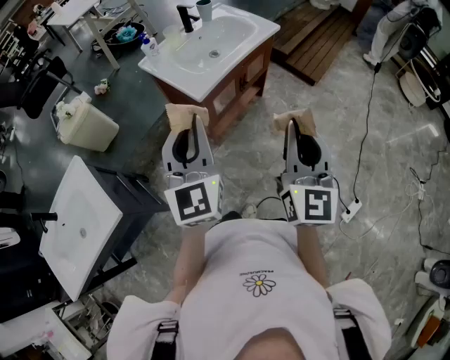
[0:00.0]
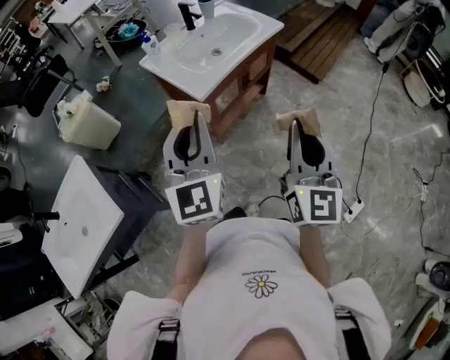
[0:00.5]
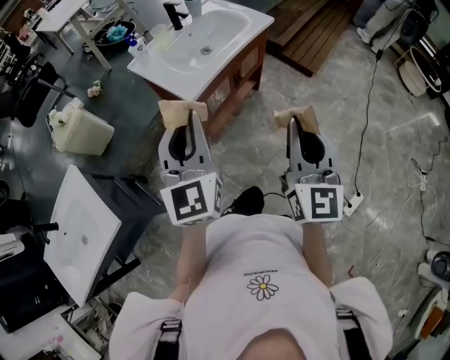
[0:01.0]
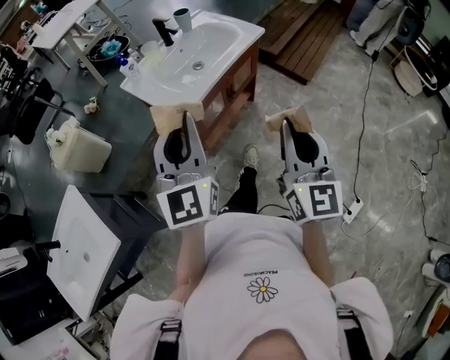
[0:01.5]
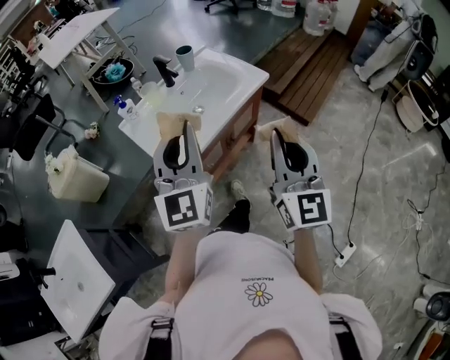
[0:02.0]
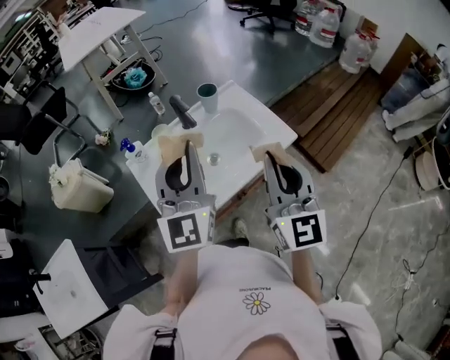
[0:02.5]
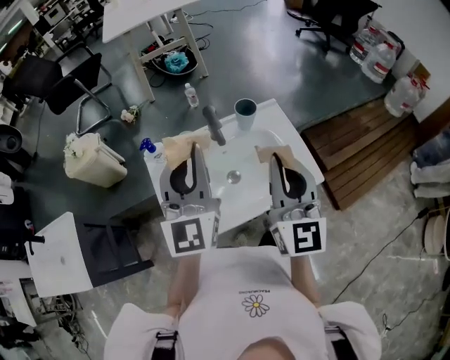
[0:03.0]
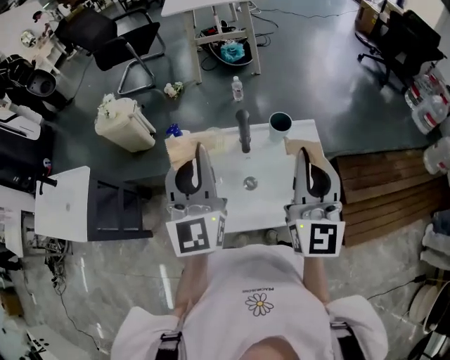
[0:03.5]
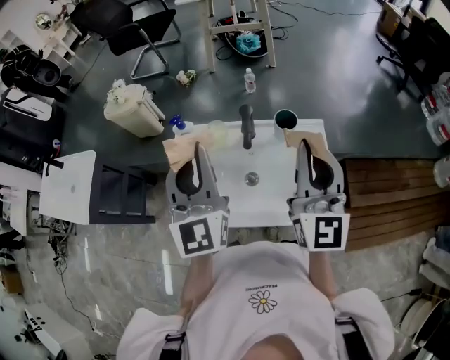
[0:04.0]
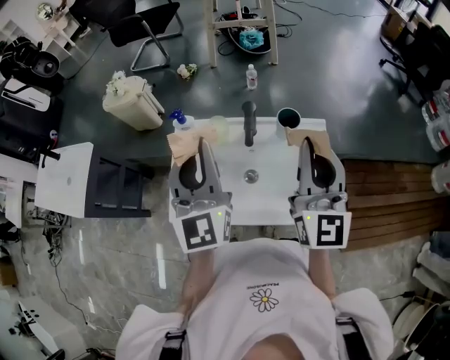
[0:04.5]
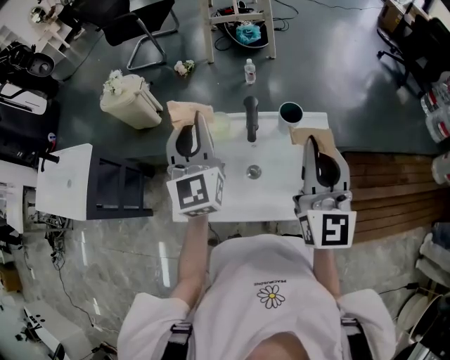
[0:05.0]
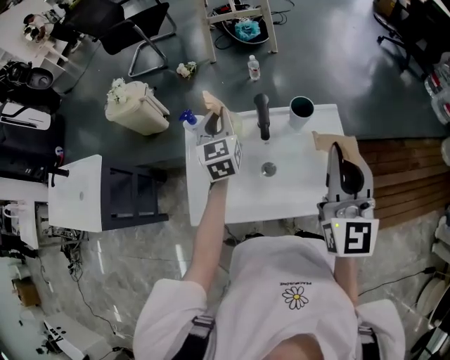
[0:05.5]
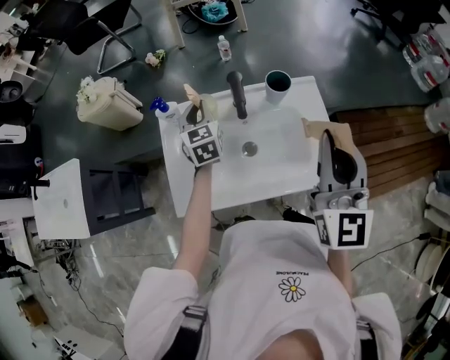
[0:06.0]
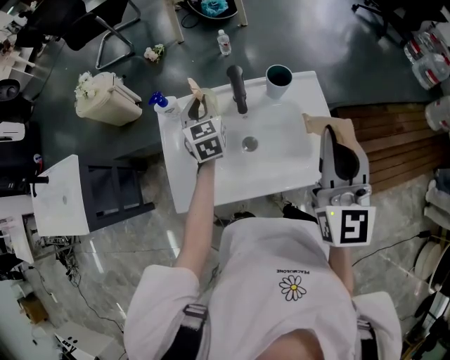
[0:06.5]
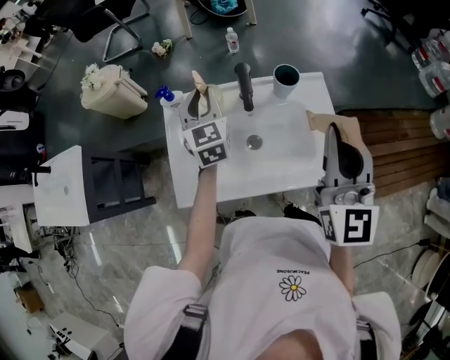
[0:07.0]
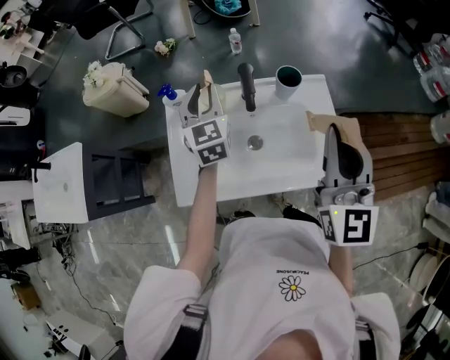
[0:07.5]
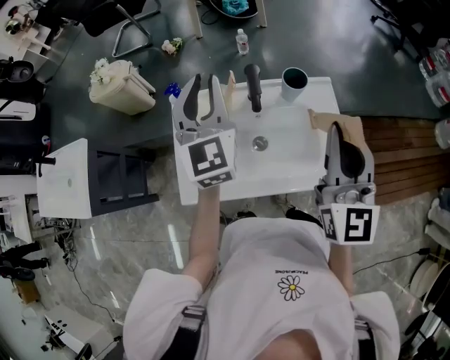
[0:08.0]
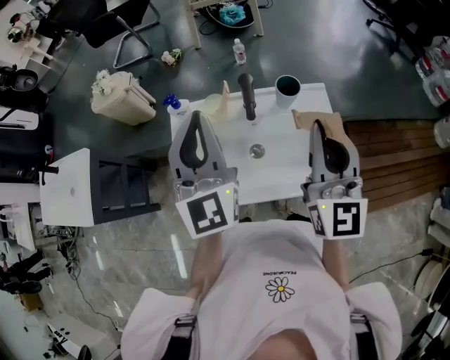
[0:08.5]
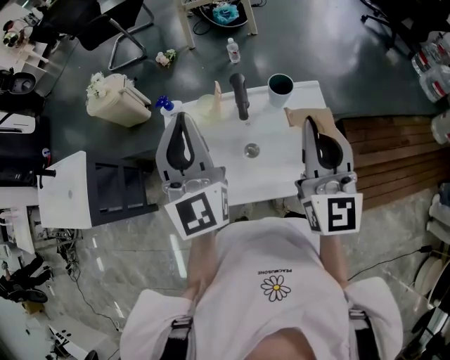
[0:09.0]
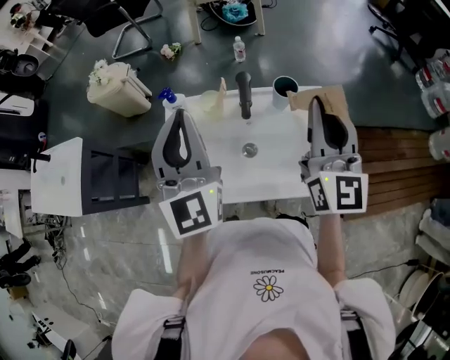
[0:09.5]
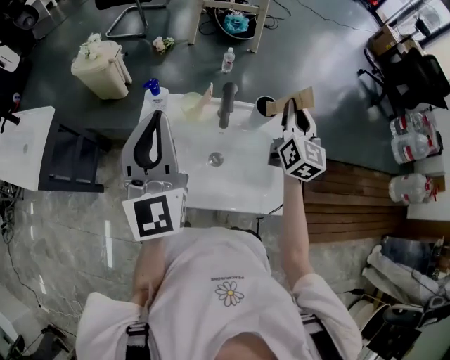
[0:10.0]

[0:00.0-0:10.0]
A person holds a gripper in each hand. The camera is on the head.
0:00.0 to 0:02.0: The grippers both shift forward by approximately 25 cm.
0:02.0 to 0:04.0: The right gripper ends up about 50 cm from where it was, and swivels some 40 degrees; the left gripper changes place by some 30 cm, and changes its angle by about 50 degrees.
0:04.0 to 0:06.0: The left gripper shifts roughly 30 cm downward and forward, and points its fingers about 30 degrees further downward; the right gripper ends up roughly 5 cm from where it was.
0:06.0 to 0:08.0: The left gripper is displaced upward by some 20 cm, and rotates some 20 degrees.
0:08.0 to 0:10.0: The left gripper moves backward, roughly 10 cm. Meanwhile the right gripper shifts approximately 20 cm forward and downward.

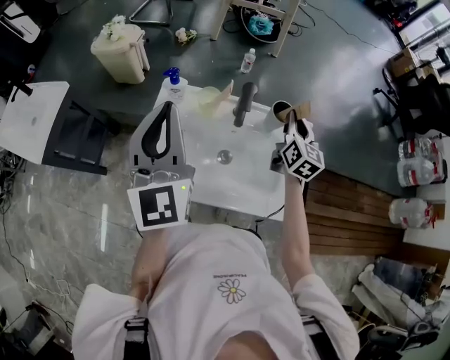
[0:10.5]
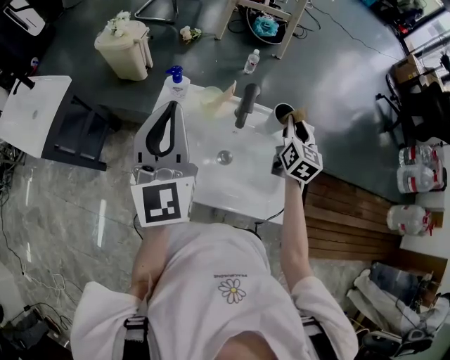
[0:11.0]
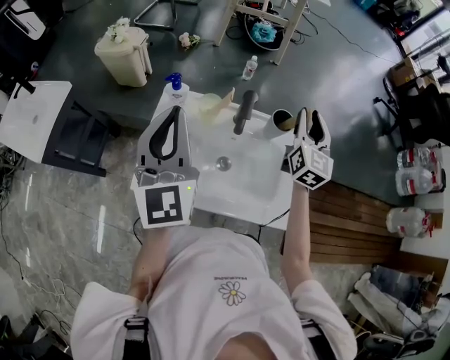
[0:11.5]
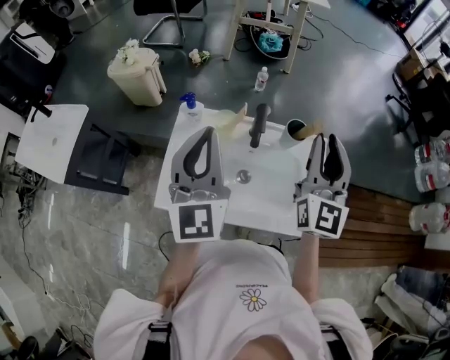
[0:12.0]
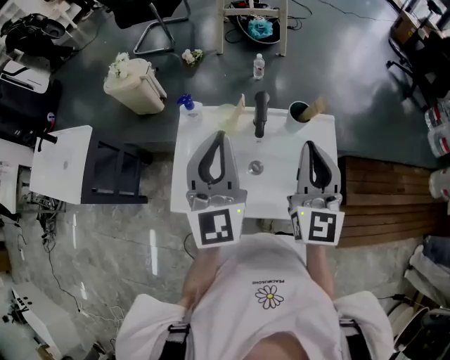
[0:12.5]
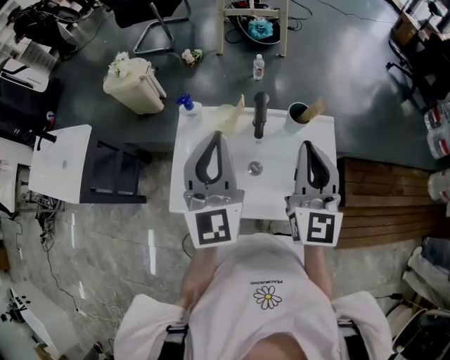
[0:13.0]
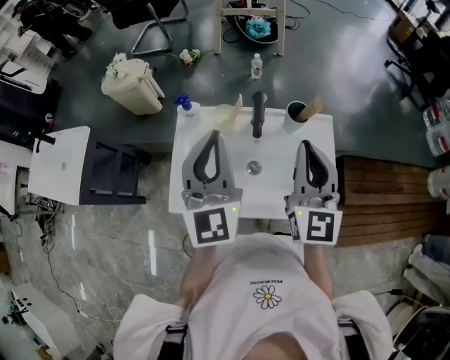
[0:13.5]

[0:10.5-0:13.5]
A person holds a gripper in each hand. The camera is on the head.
0:10.5 to 0:12.0: The right gripper shifts about 20 cm upward and backward, and rotates approximately 30 degrees.
0:12.0 to 0:13.5: The right gripper moves approximately 5 cm.

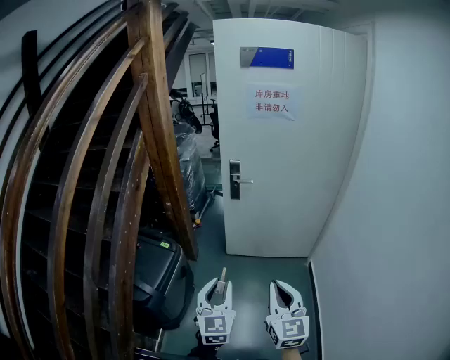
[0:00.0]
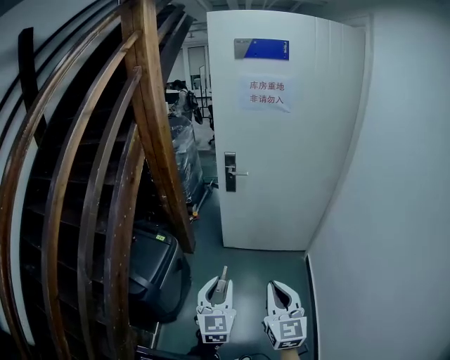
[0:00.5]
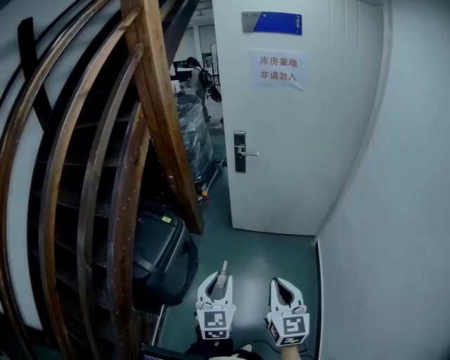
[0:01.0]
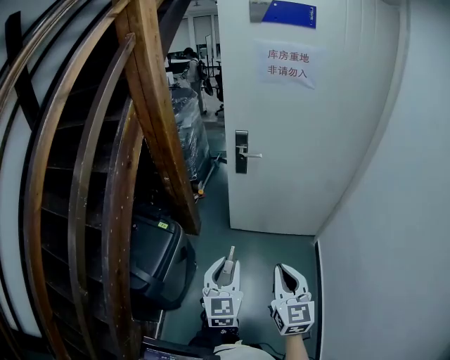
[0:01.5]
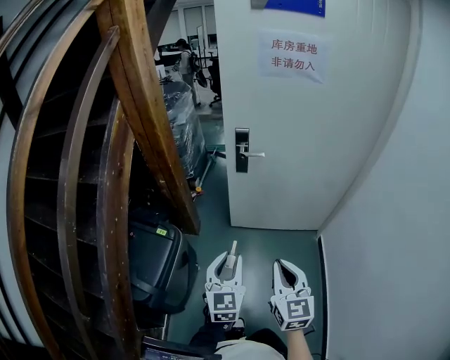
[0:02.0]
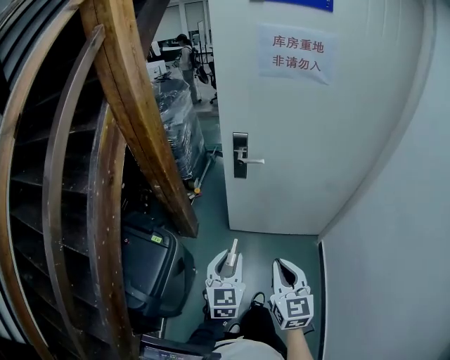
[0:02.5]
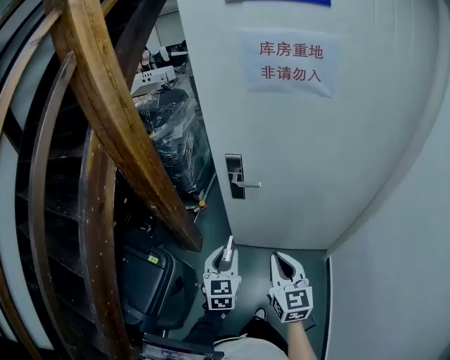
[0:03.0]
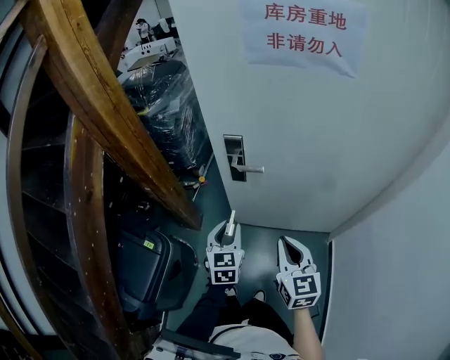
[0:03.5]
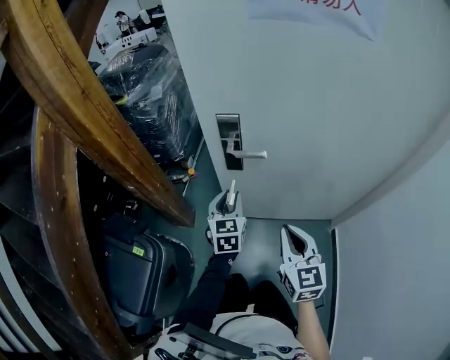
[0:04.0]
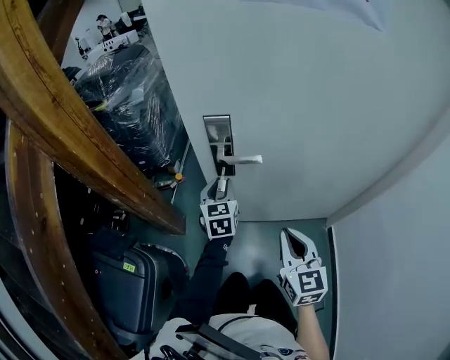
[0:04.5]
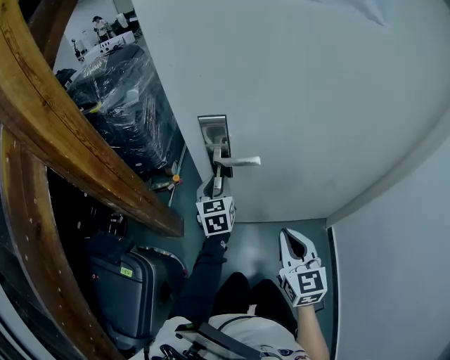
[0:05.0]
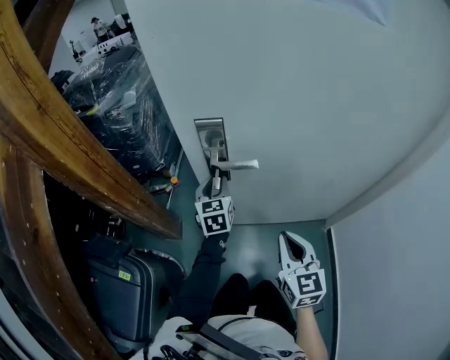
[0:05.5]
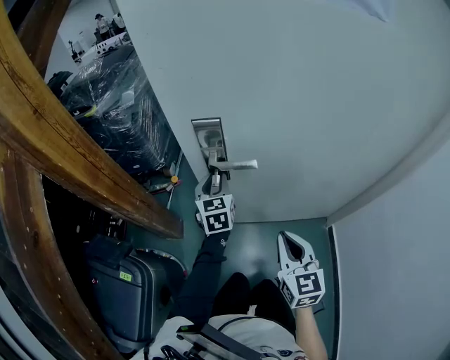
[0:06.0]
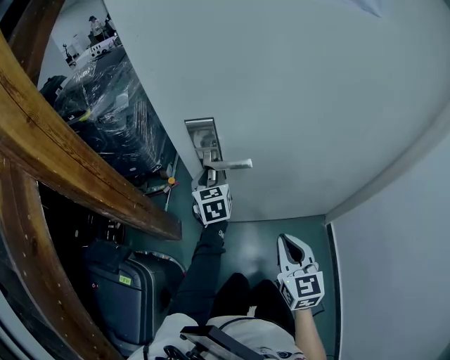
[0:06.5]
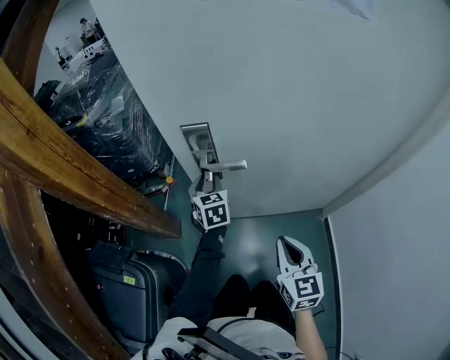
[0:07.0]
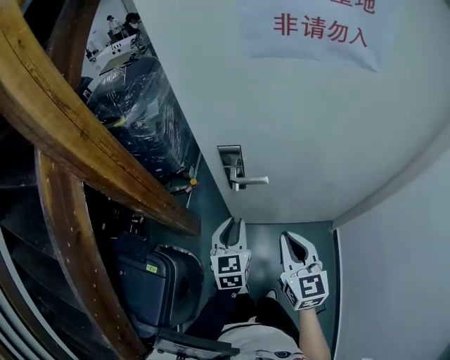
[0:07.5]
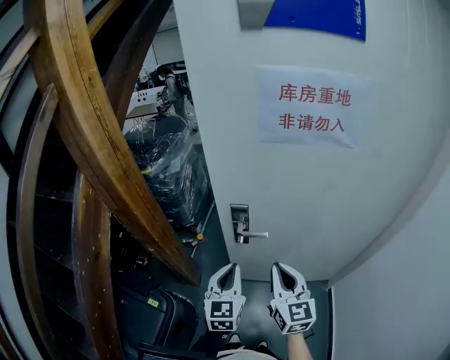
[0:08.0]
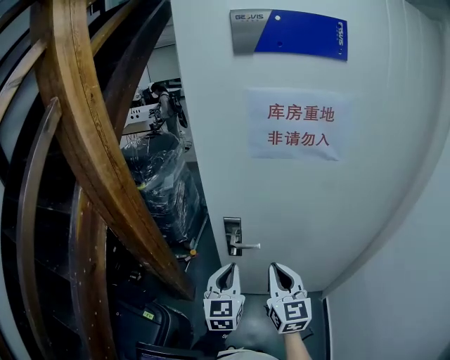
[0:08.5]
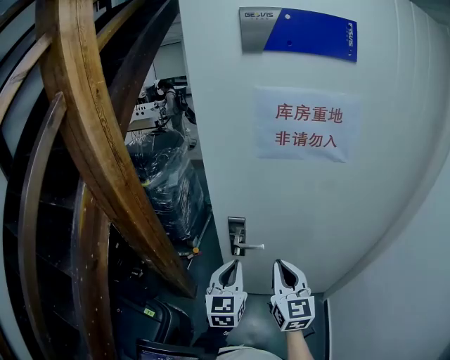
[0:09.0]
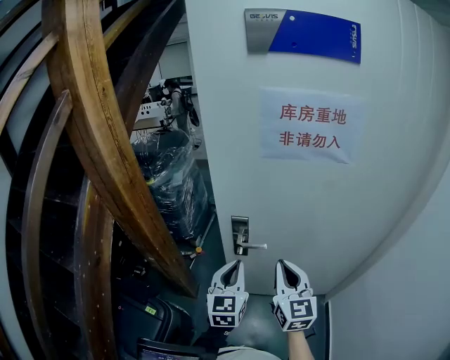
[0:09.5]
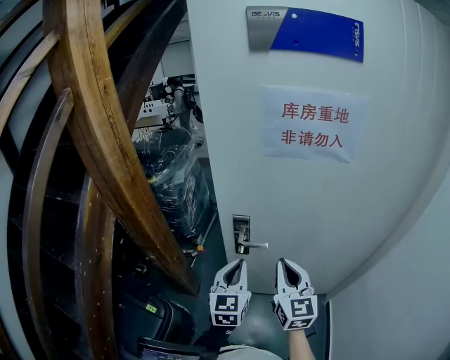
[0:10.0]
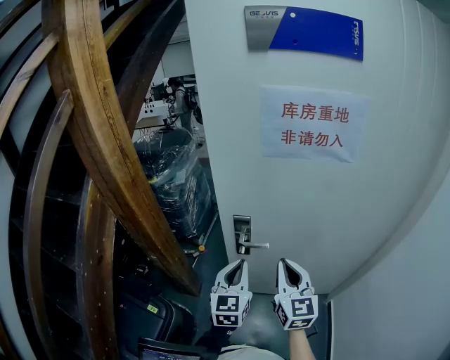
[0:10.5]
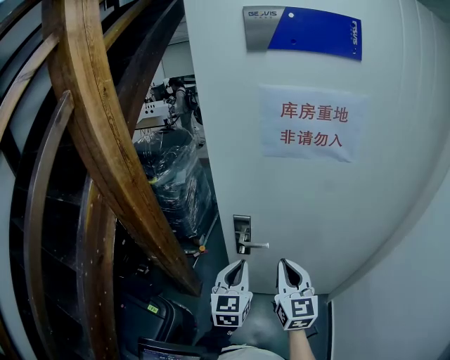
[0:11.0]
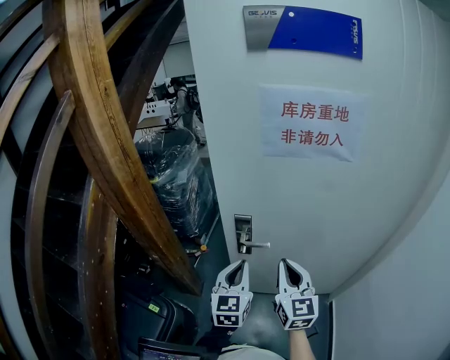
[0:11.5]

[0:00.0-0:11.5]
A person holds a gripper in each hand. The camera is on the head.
0:00.0 to 0:02.0: The grippers both shift forward by about 20 cm.
0:02.0 to 0:04.0: The right gripper goes some 35 cm forward and downward. Meanwhile the left gripper is displaced forward by approximately 40 cm.
0:04.0 to 0:06.0: The right gripper goes some 5 cm downward, while the left gripper travels forward by approximately 15 cm.
0:06.0 to 0:07.5: The left gripper shifts roughly 20 cm backward and upward, while the right gripper goes about 15 cm upward.
0:07.5 to 0:09.5: The grippers both shift upward by roughly 15 cm. The left gripper closes up.
0:09.5 to 0:11.5: Both grippers stay put.

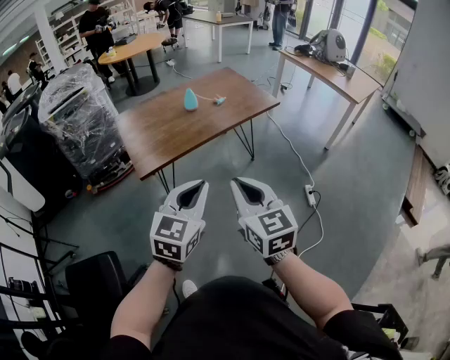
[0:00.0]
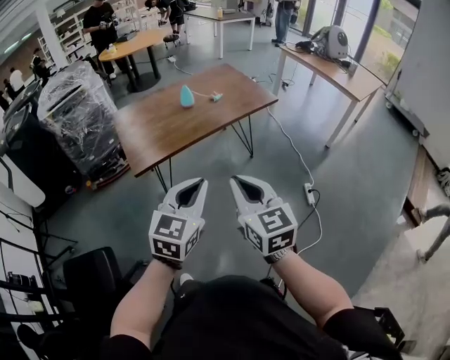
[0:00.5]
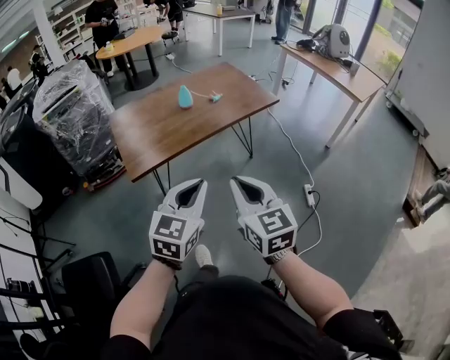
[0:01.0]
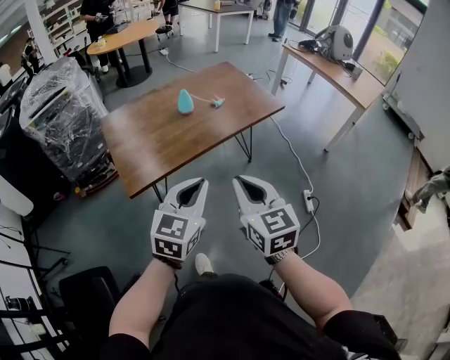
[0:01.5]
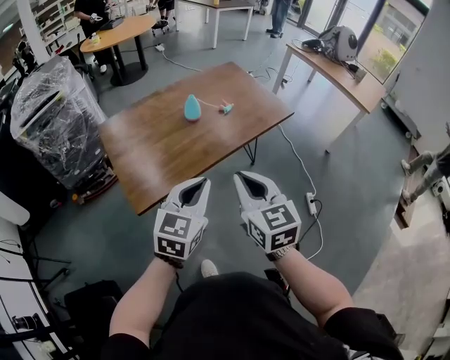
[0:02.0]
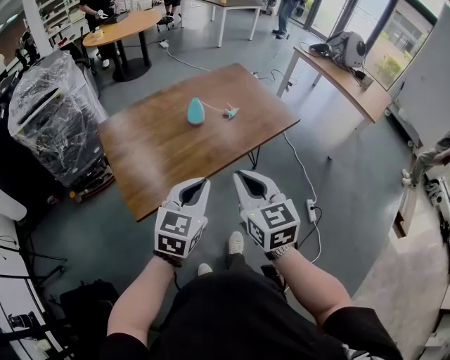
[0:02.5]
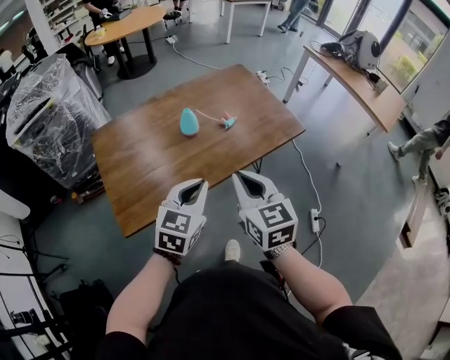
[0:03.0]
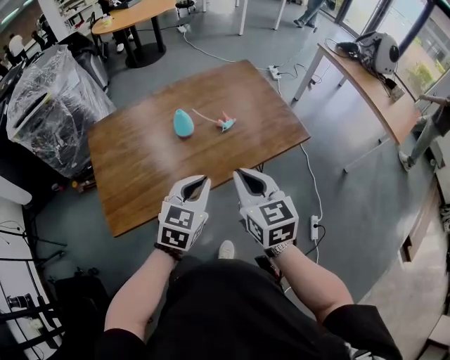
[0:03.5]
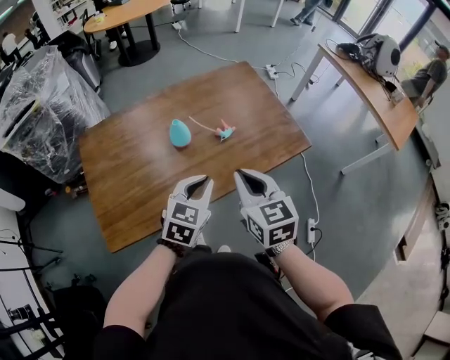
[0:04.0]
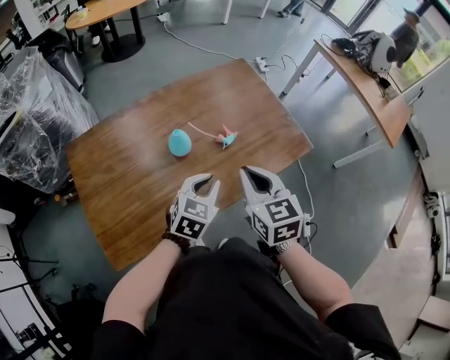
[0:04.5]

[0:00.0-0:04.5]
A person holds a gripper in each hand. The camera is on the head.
0:00.0 to 0:02.0: The two grippers go about 20 cm forward.
0:02.0 to 0:04.5: The right gripper goes approximately 30 cm forward, while the left gripper is displaced forward and downward by about 35 cm.
